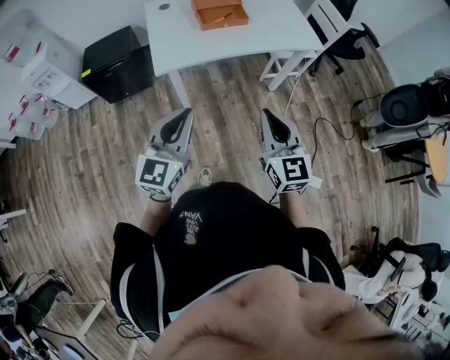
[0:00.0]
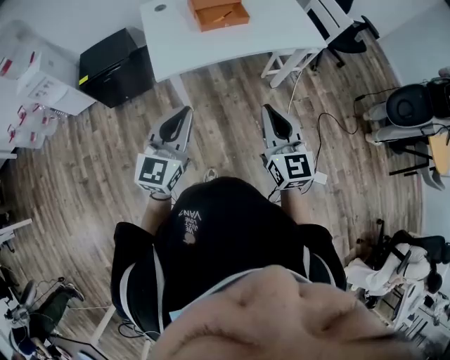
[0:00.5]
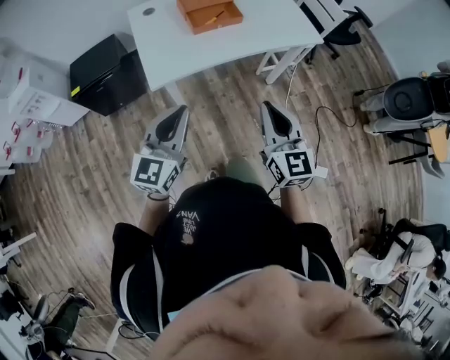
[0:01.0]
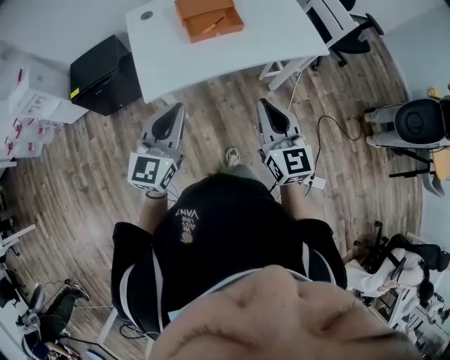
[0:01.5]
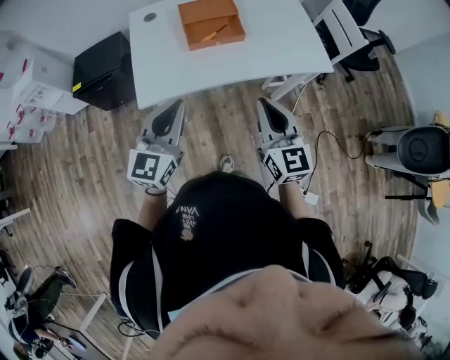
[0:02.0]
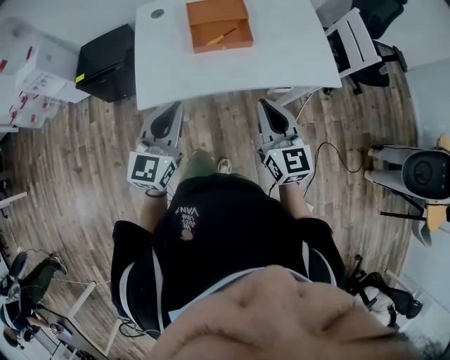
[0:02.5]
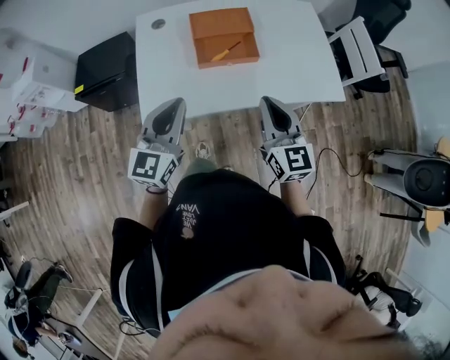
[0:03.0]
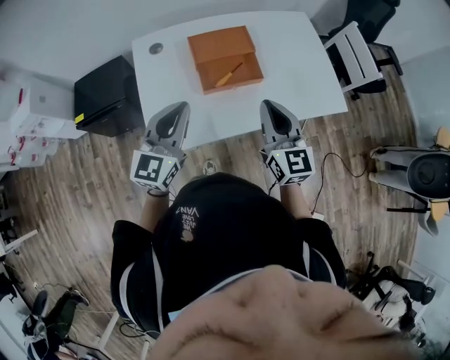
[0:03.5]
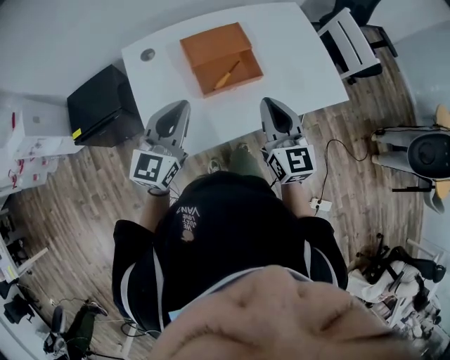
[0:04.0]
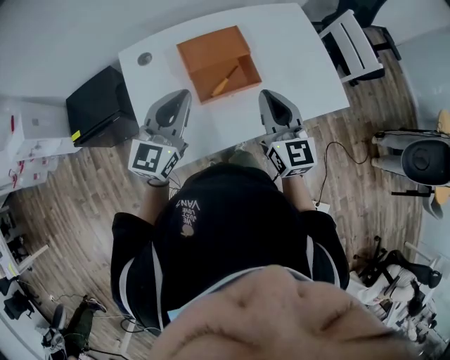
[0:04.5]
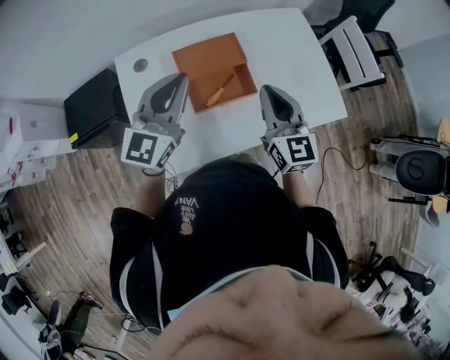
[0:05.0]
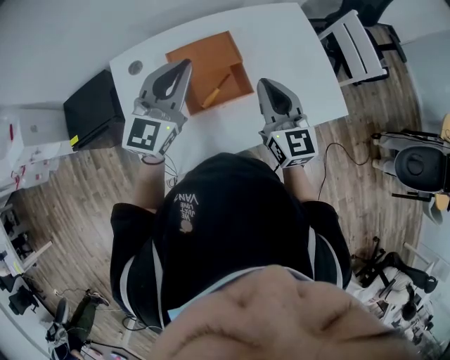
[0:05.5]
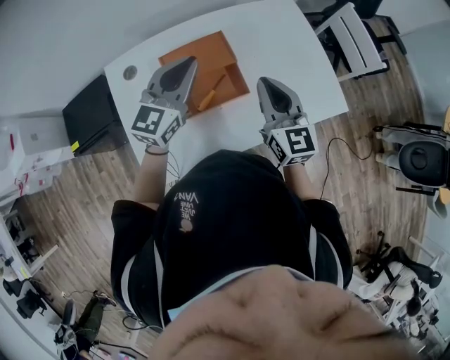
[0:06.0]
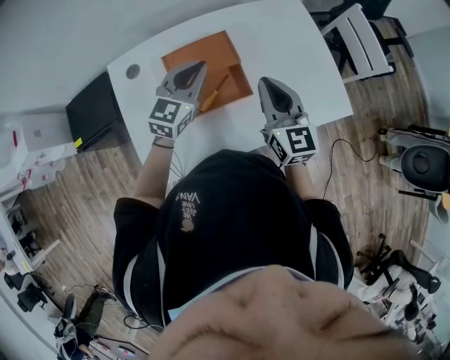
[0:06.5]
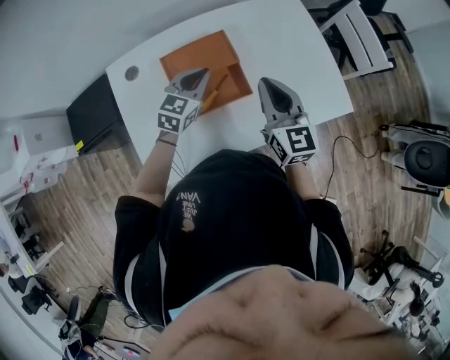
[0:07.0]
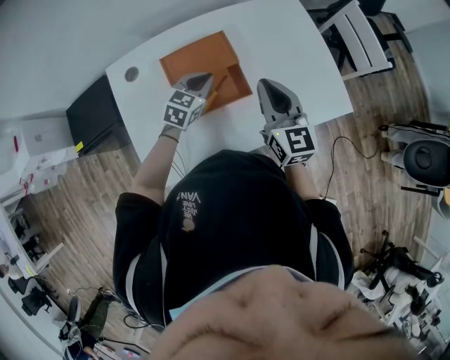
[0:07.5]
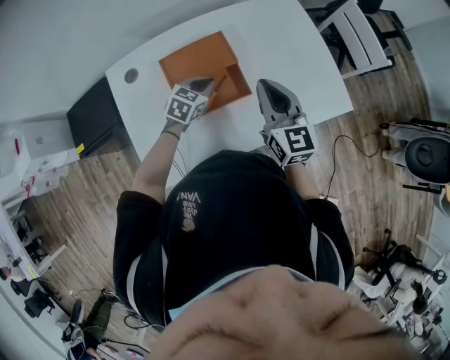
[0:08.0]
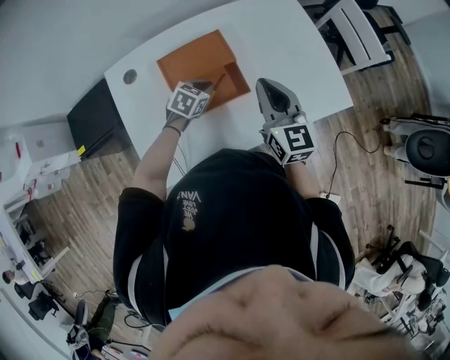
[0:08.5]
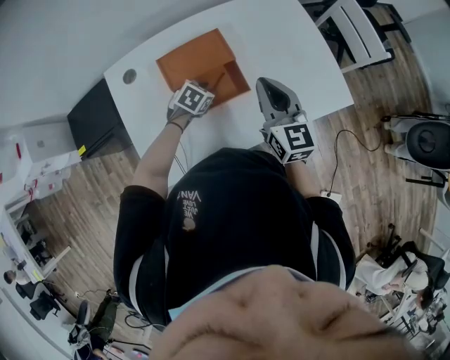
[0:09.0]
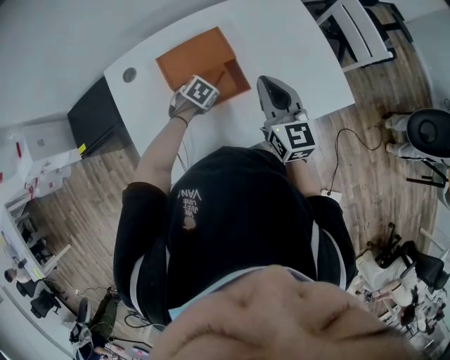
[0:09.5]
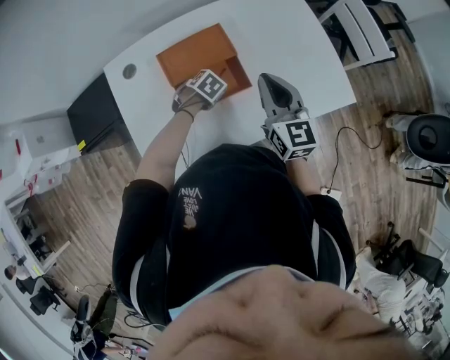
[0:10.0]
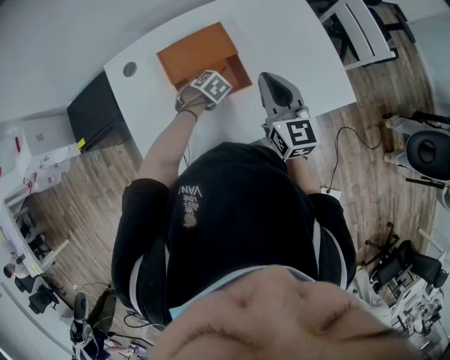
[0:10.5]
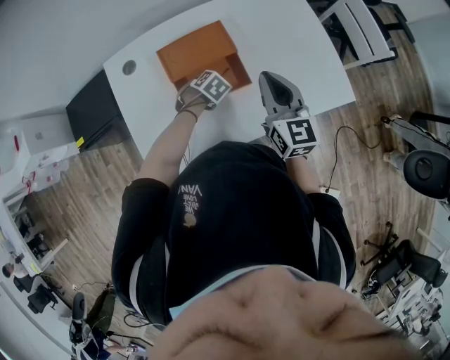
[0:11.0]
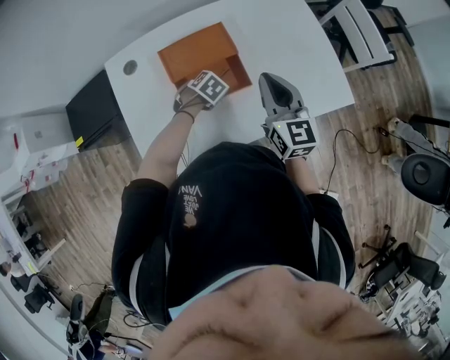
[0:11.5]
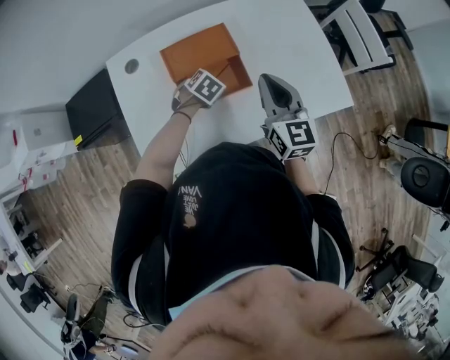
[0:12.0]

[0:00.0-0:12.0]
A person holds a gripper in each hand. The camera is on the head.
0:00.0 to 0:02.0: The grippers both shift forward by roughly 25 cm.
0:02.0 to 0:04.0: The two grippers go approximately 25 cm forward.
0:04.0 to 0:06.0: The left gripper goes approximately 25 cm forward and to the right; the right gripper shifts some 15 cm forward.
0:06.0 to 0:08.0: The left gripper moves downward, roughly 20 cm, and tips its fingers downward by some 40 degrees.
0:08.0 to 0:10.0: The left gripper goes about 10 cm downward, points its fingers some 30 degrees further downward, and opens up.
0:10.0 to 0:12.0: The left gripper closes its fingers.

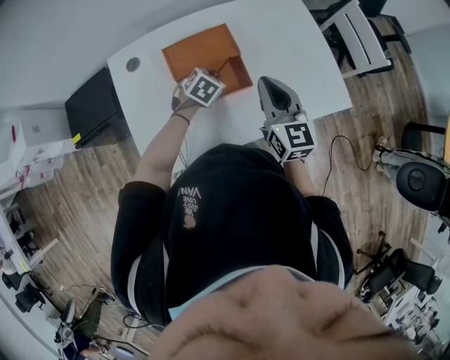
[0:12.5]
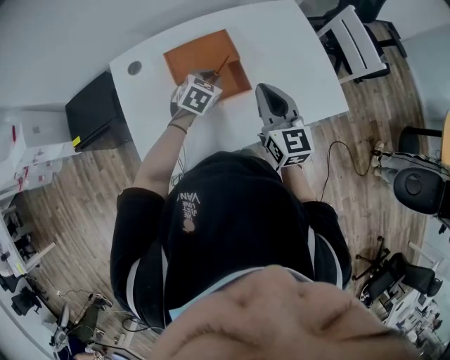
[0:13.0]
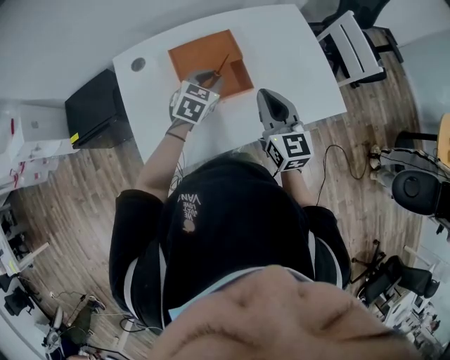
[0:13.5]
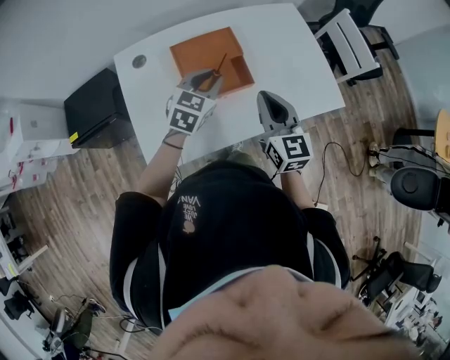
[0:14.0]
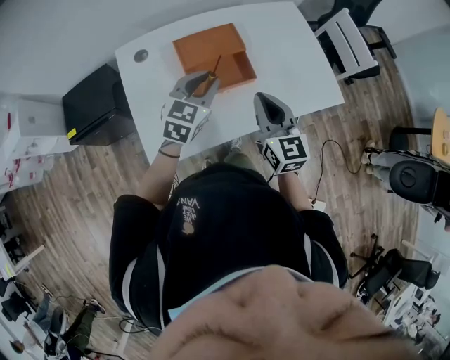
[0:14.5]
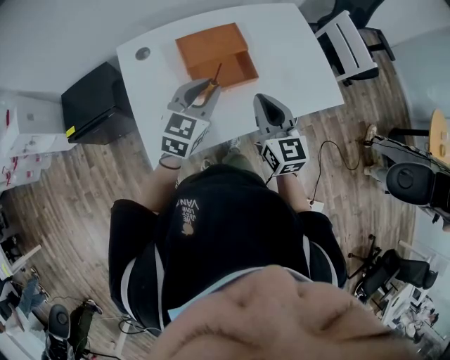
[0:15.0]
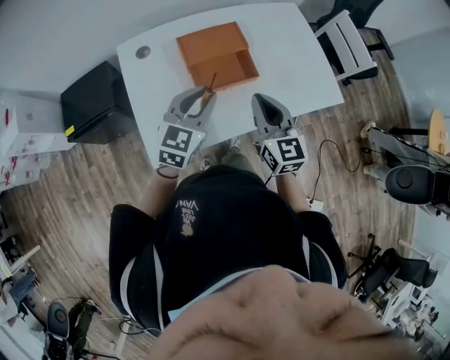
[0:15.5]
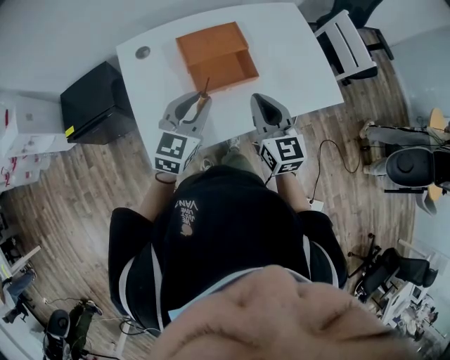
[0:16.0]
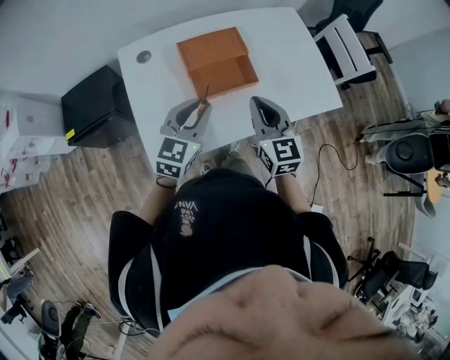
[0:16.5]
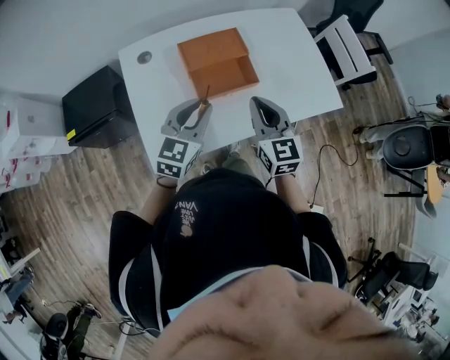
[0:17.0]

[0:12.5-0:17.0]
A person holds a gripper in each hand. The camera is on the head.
0:12.5 to 0:14.5: The right gripper is displaced backward by some 10 cm; the left gripper travels upward and backward by approximately 20 cm, and tips its fingers upward by approximately 30 degrees.
0:14.5 to 0:17.0: The left gripper shifts roughly 10 cm backward.

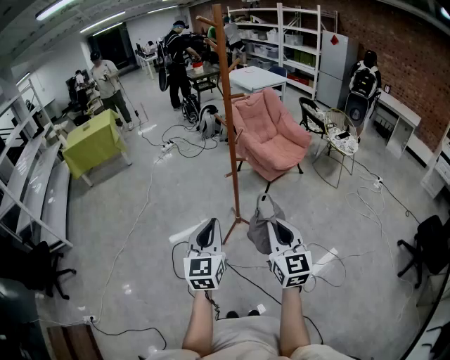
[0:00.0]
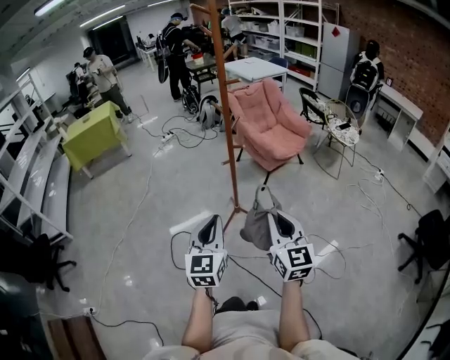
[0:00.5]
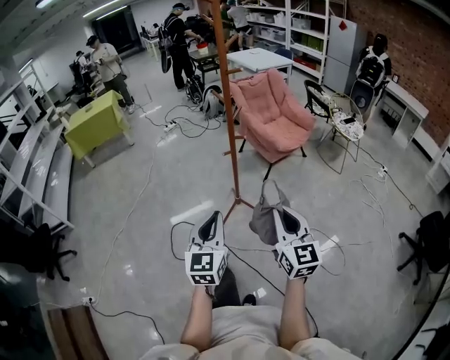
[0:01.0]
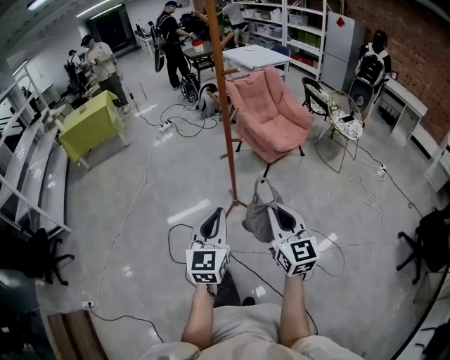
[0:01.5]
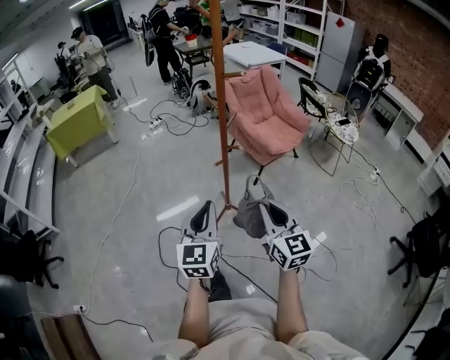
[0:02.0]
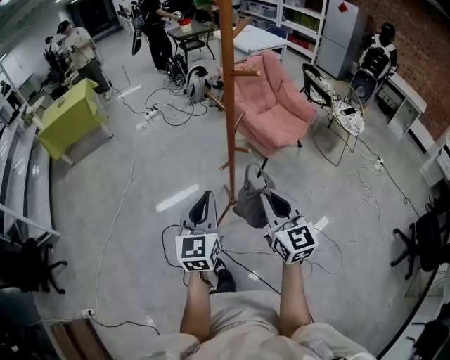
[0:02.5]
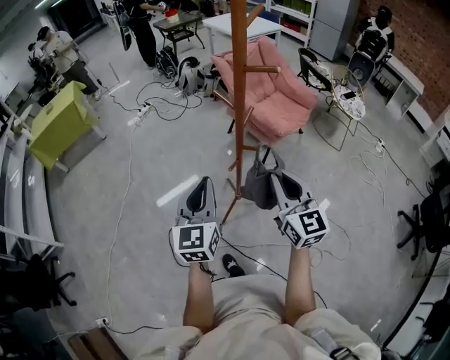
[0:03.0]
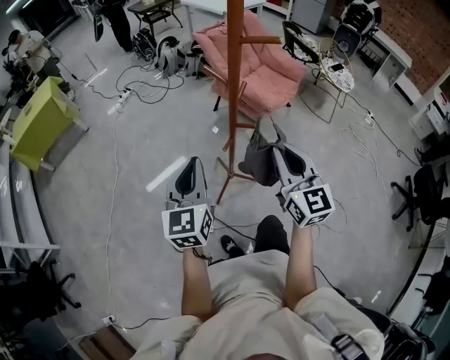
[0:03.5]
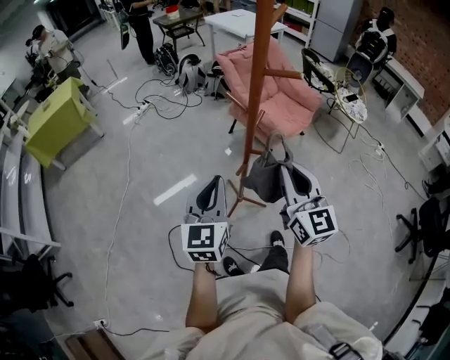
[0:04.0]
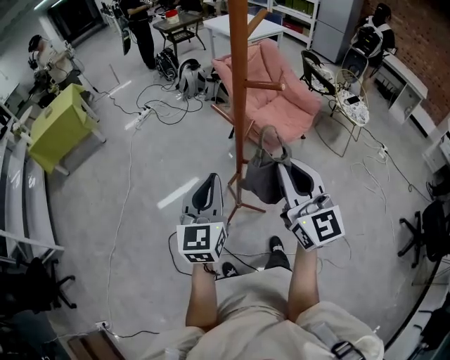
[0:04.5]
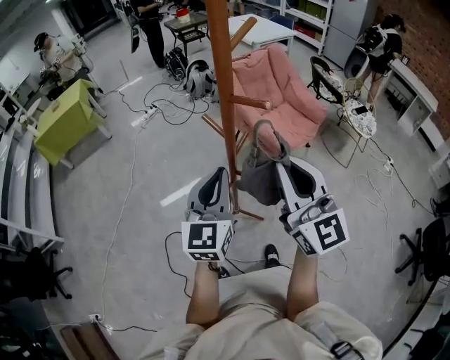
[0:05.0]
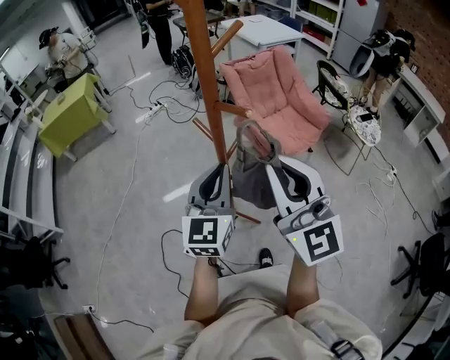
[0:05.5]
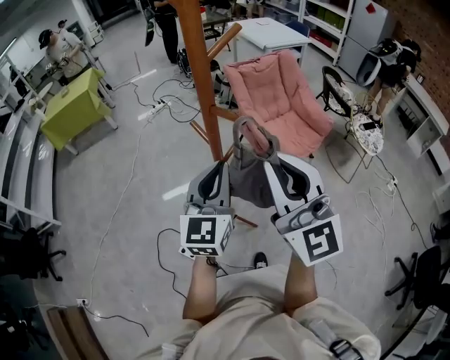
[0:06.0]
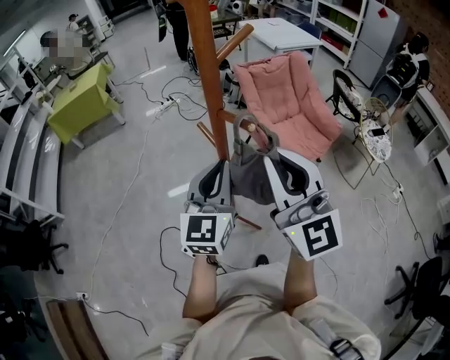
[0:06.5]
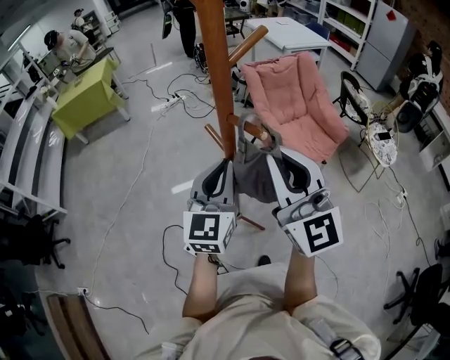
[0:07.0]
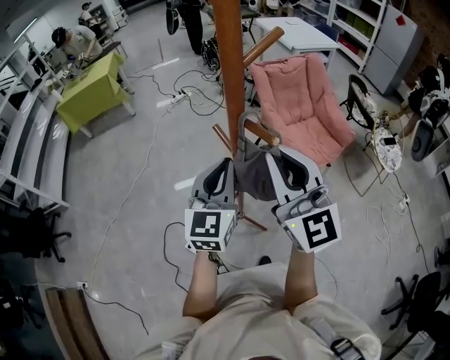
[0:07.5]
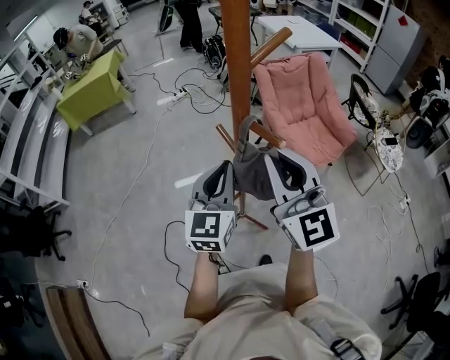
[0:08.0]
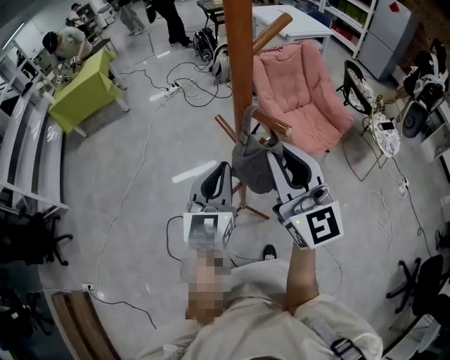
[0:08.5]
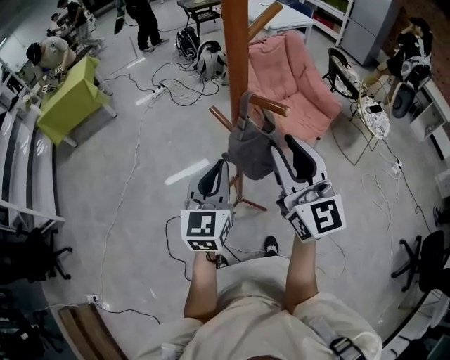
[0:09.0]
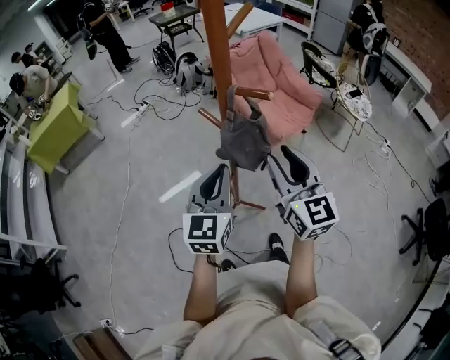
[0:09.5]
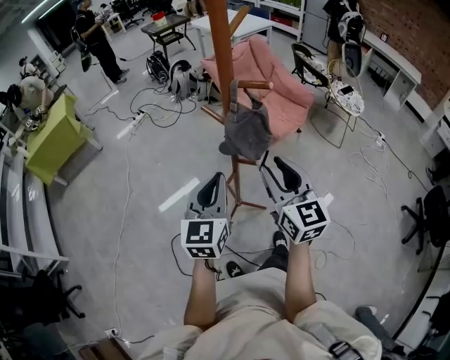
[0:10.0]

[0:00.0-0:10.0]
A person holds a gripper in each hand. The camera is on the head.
0:00.0 to 0:02.0: The two grippers go roughly 10 cm forward.
0:02.0 to 0:04.0: The two grippers go approximately 15 cm forward.
0:04.0 to 0:06.0: The left gripper moves to the right, forward and upward, about 15 cm. The right gripper moves upward, some 15 cm, and swivels about 30 degrees.
0:06.0 to 0:08.0: The left gripper shifts about 5 cm forward. The right gripper shifts roughly 10 cm forward.
0:08.0 to 0:10.0: The right gripper goes about 15 cm downward and backward, rotates approximately 30 degrees, and opens its fingers. Meanwhile the left gripper travels backward by some 10 cm.
